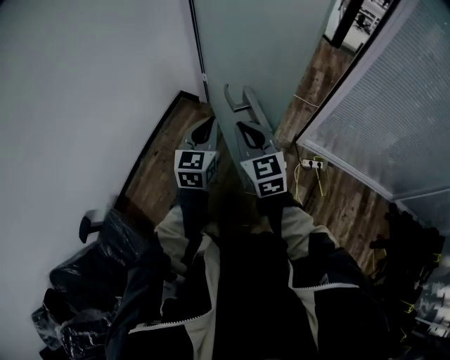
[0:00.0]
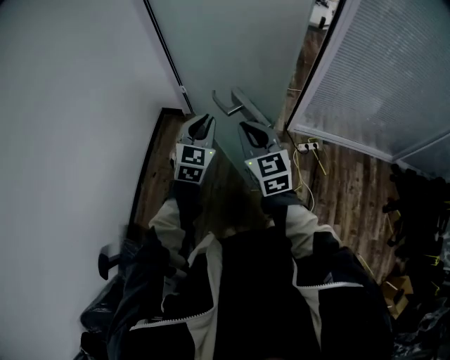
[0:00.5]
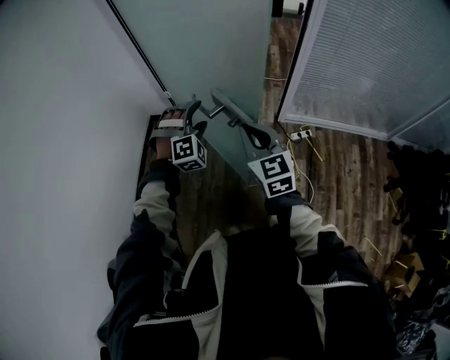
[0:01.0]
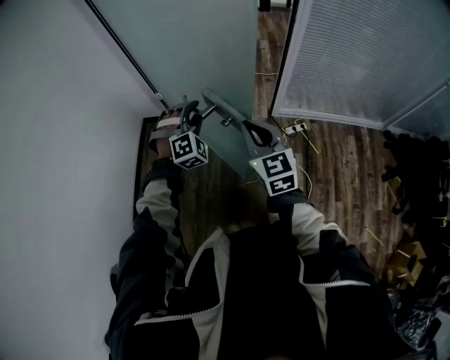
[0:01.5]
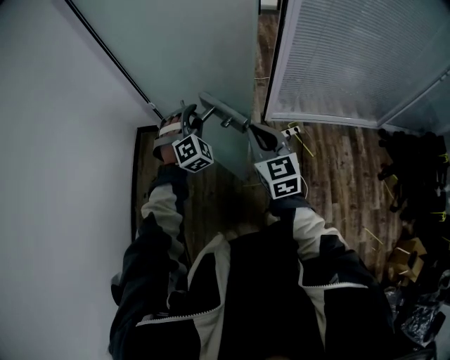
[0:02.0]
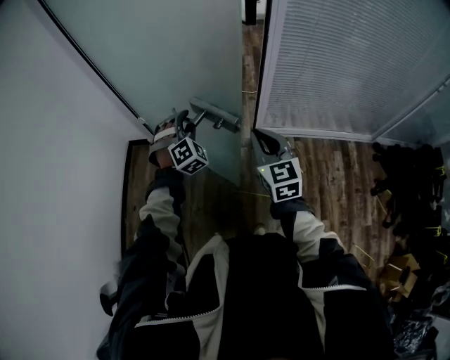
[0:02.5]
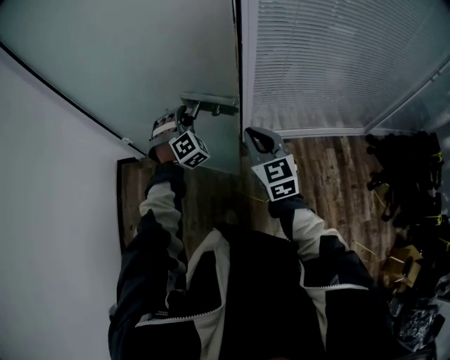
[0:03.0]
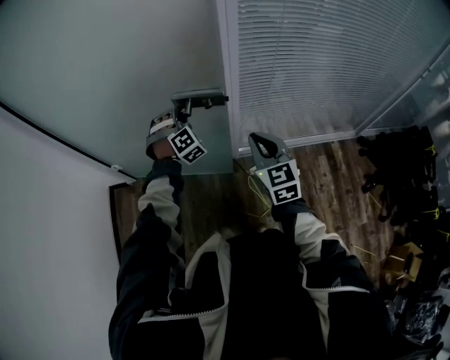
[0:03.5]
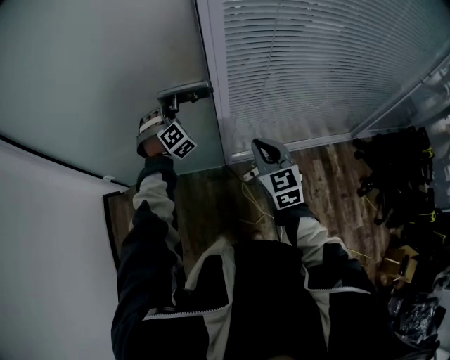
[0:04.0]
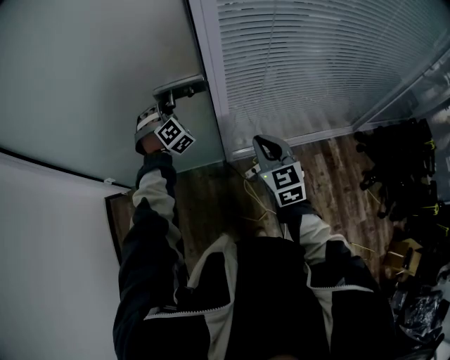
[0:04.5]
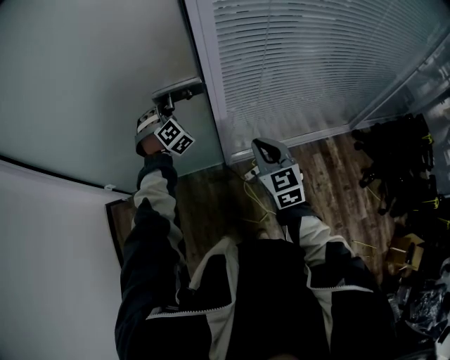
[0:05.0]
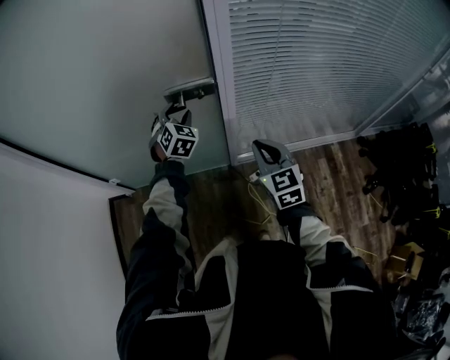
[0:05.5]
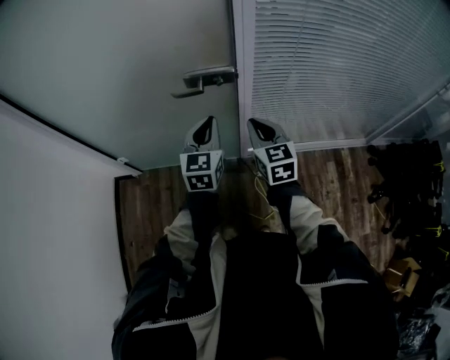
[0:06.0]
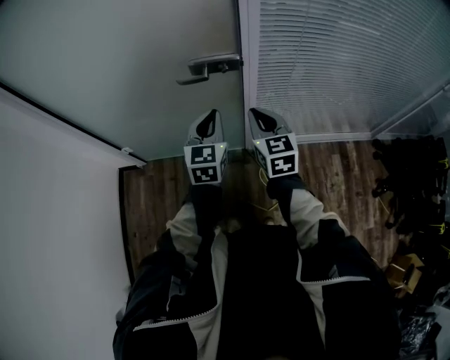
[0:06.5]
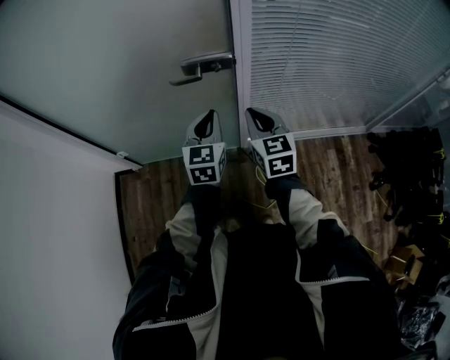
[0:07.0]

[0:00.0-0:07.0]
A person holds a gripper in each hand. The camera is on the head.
0:00.0 to 0:02.0: The right gripper heads to the right, covering some 15 cm, and changes its angle by approximately 30 degrees, while the left gripper shifts some 20 cm forward, to the right and downward, twists some 70 degrees clockwise, seen from behind, and opens.
0:02.0 to 0:03.5: The left gripper is displaced forward and to the right by about 40 cm, while the right gripper travels to the right and forward by some 35 cm.
0:03.5 to 0:05.0: The right gripper is displaced to the right by some 5 cm; the left gripper is displaced forward by roughly 10 cm.
0:05.0 to 0:07.0: The right gripper moves to the left, some 10 cm; the left gripper is displaced backward by about 20 cm, twists some 70 degrees counterclockwise, seen from behind, and closes.

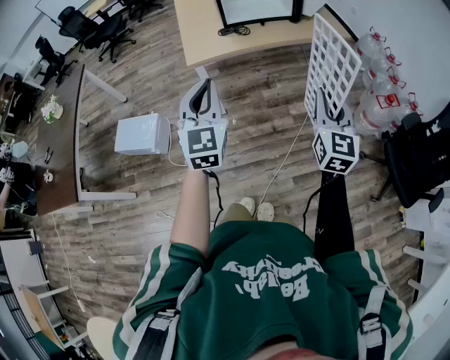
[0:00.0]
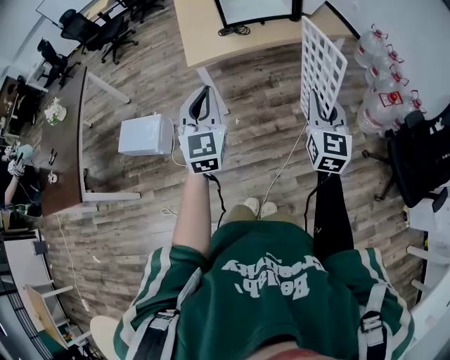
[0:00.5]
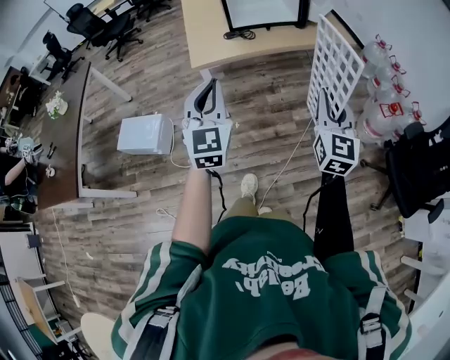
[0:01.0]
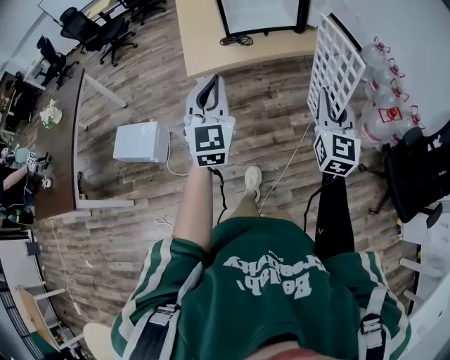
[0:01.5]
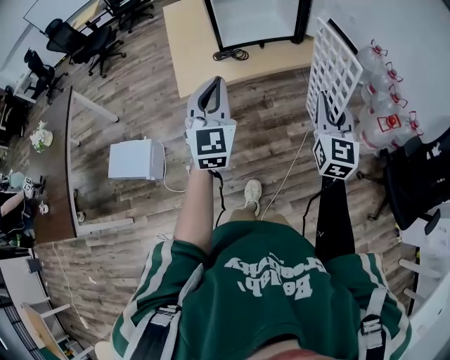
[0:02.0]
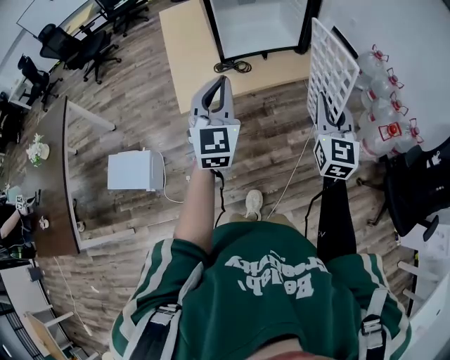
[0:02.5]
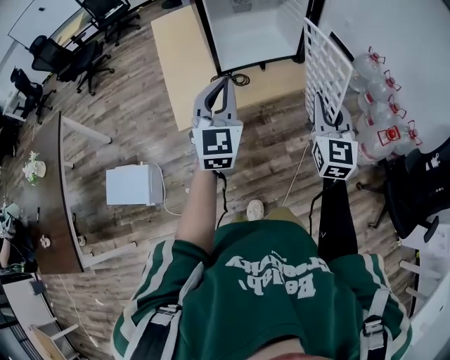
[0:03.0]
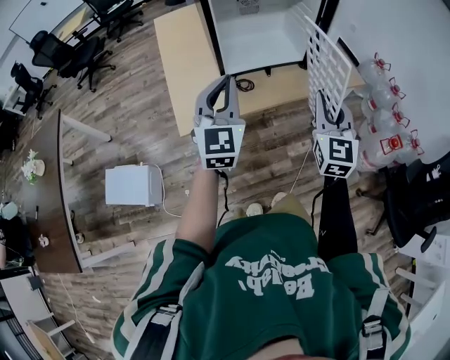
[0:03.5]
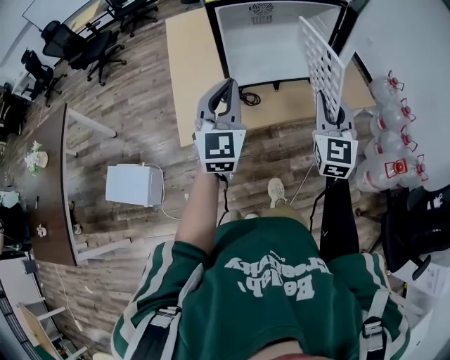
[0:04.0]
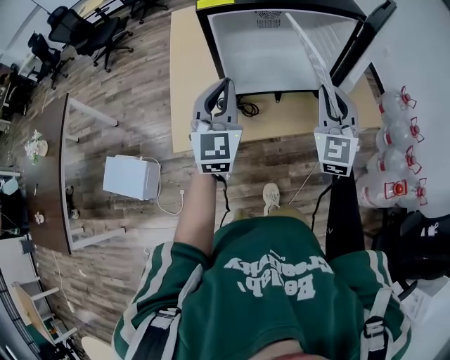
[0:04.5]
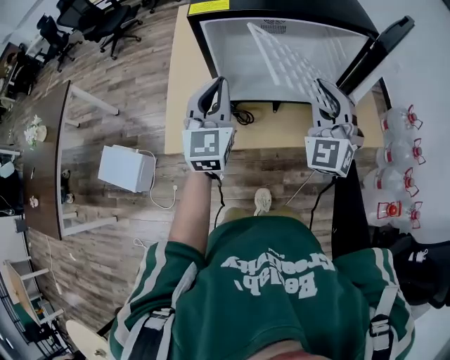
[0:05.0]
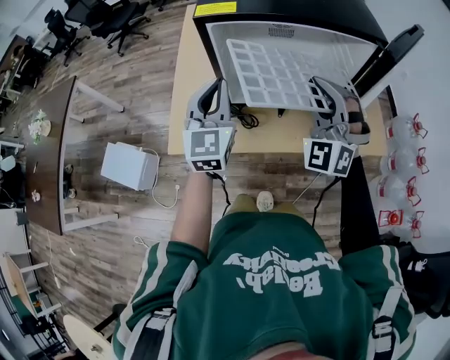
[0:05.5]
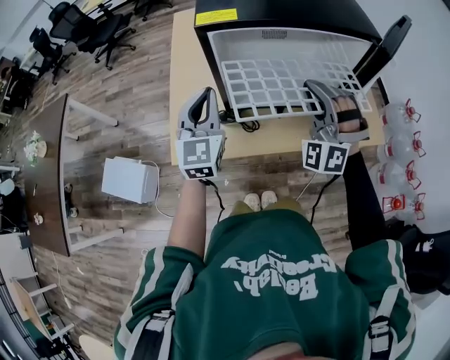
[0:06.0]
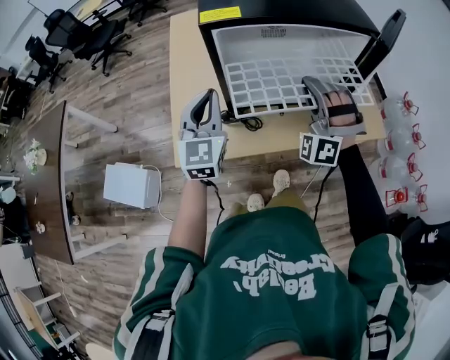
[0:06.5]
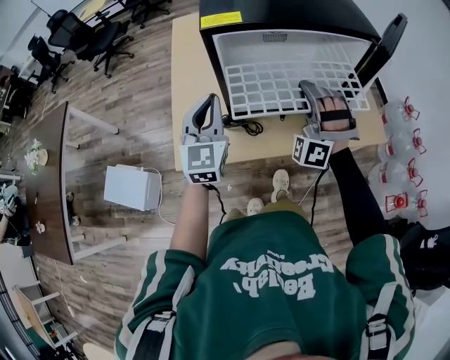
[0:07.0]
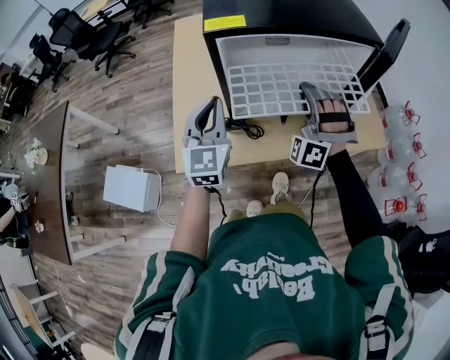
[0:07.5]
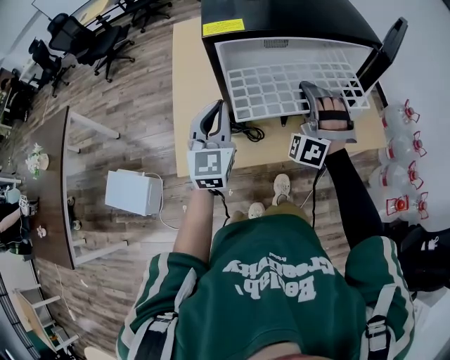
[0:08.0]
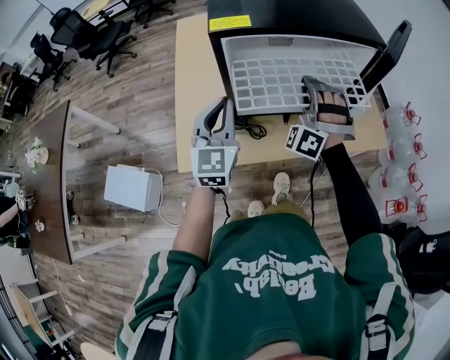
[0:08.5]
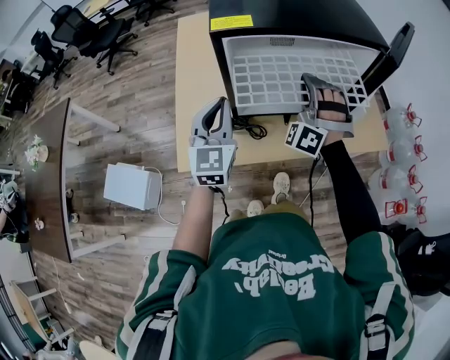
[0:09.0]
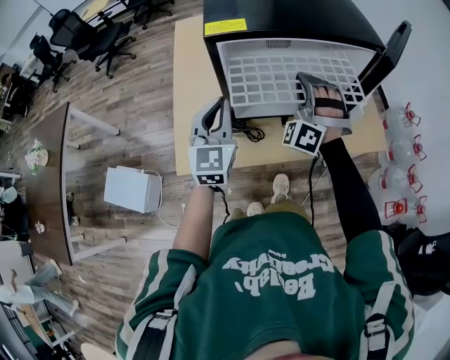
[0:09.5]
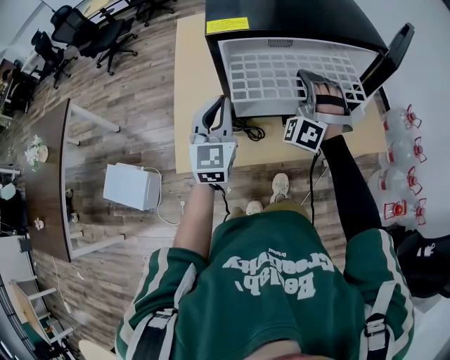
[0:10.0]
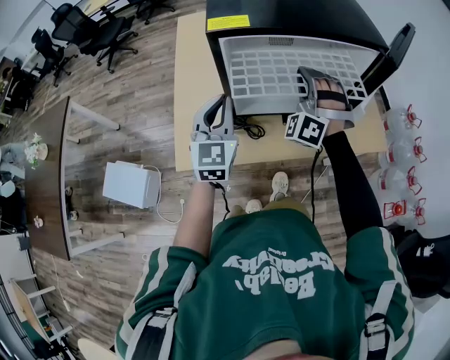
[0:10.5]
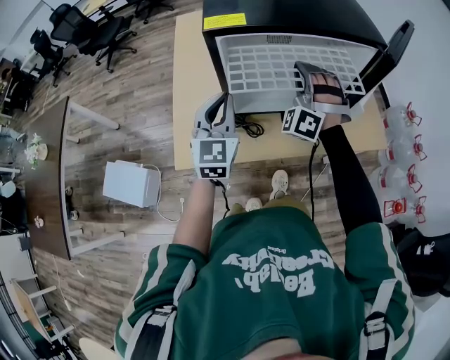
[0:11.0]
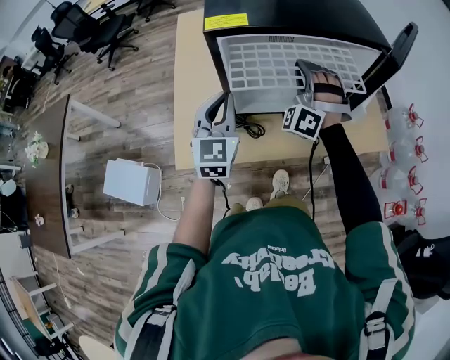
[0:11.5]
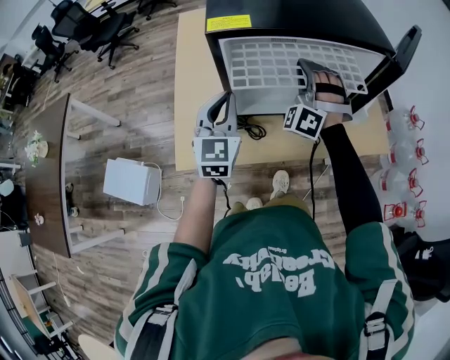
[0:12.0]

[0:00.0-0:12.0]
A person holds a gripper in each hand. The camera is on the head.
0:00.0 to 0:02.0: The grippers both shift forward by about 20 cm.
0:02.0 to 0:04.0: The grippers both shift forward by approximately 25 cm.
0:04.0 to 0:06.0: The two grippers go about 15 cm forward. The right gripper twists about 60 degrees counterclockwise, seen from behind.
0:06.0 to 0:08.0: The right gripper changes place by roughly 5 cm.
0:08.0 to 0:10.0: The grippers stay close to where they were, moving slightly.
0:10.0 to 0:12.0: The grippers make only small movements.

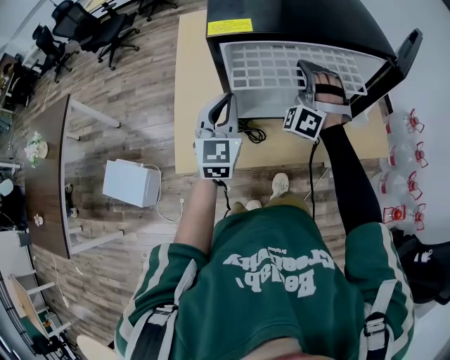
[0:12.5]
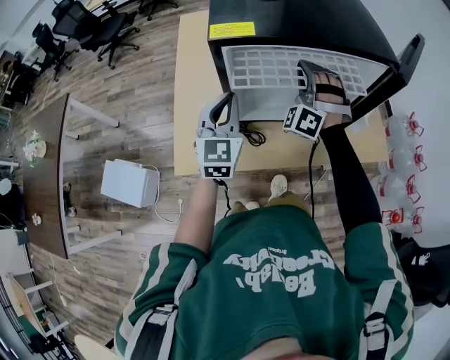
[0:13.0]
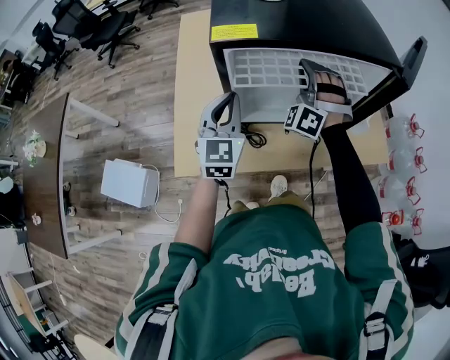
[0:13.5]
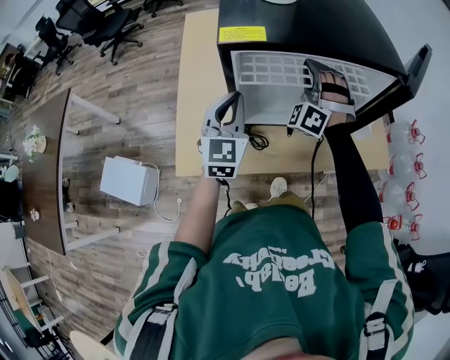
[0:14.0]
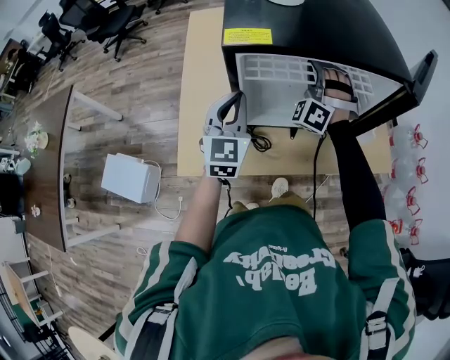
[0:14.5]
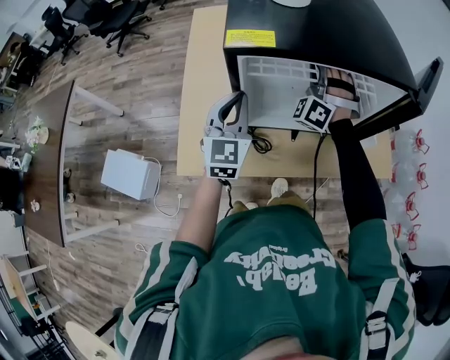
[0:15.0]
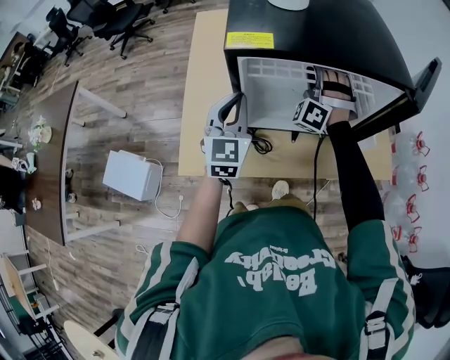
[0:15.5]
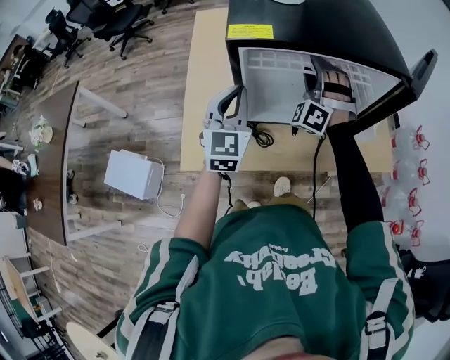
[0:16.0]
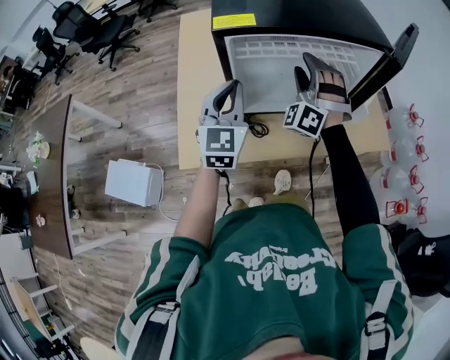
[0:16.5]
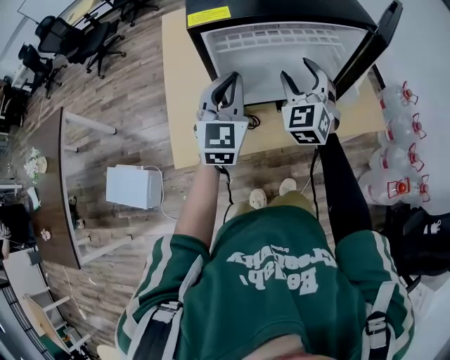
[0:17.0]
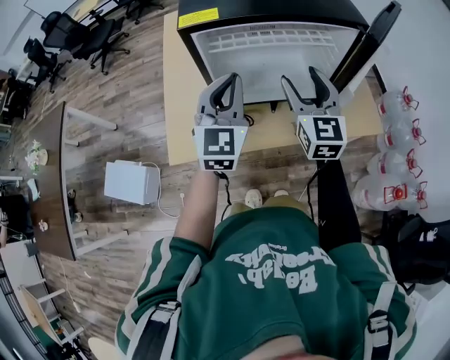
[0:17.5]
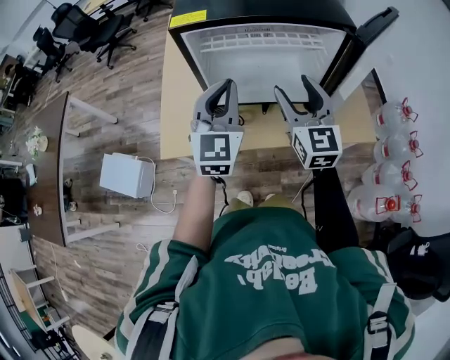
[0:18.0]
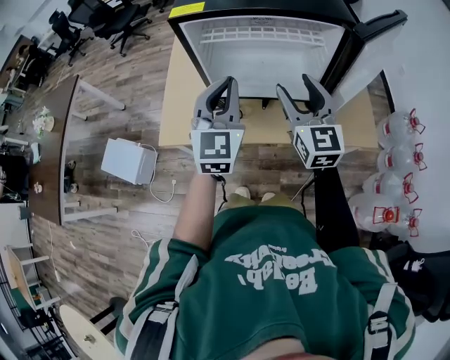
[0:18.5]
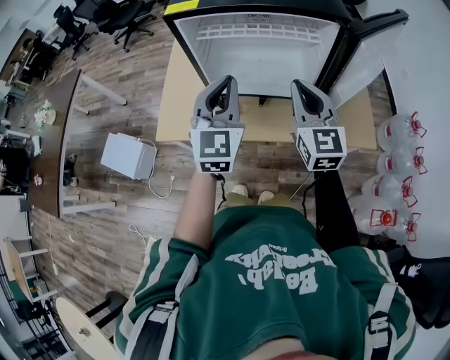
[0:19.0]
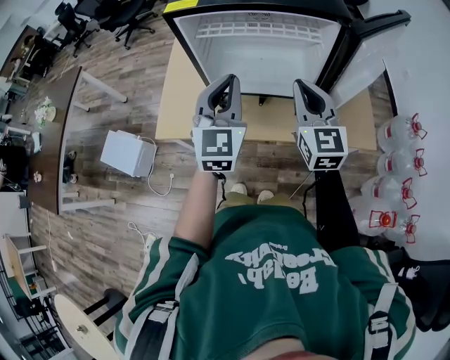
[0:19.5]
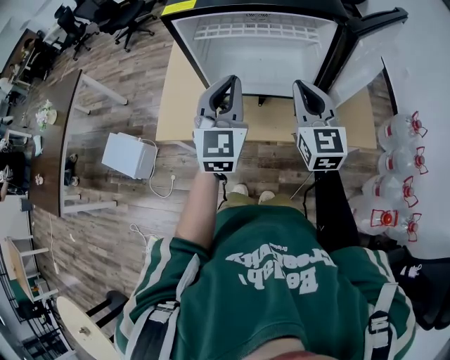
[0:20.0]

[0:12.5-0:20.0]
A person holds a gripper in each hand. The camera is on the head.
0:12.5 to 0:14.5: The right gripper shifts approximately 5 cm forward.
0:14.5 to 0:16.5: The left gripper moves roughly 5 cm. Meanwhile the right gripper is displaced backward by approximately 10 cm, and opens.
0:16.5 to 0:18.0: The left gripper goes approximately 10 cm to the right, while the right gripper shifts roughly 15 cm backward and to the right, and twists about 70 degrees clockwise, seen from behind.
0:18.0 to 0:20.0: The left gripper shifts by roughly 5 cm; the right gripper shifts about 5 cm to the right, and closes.
